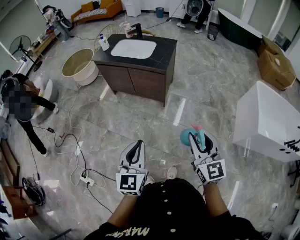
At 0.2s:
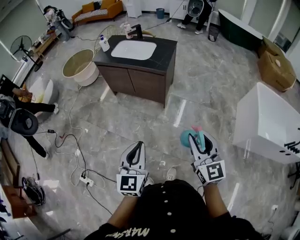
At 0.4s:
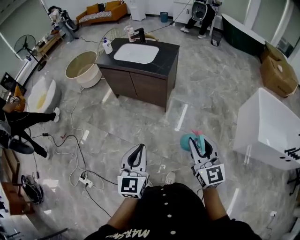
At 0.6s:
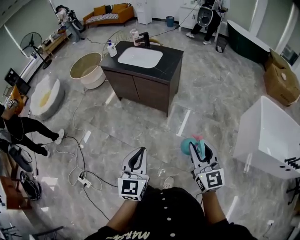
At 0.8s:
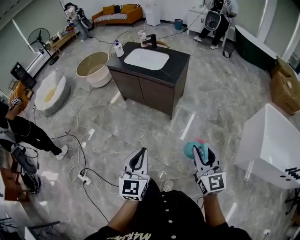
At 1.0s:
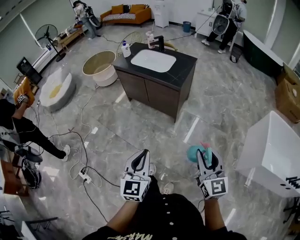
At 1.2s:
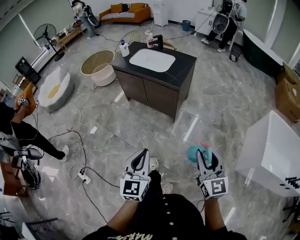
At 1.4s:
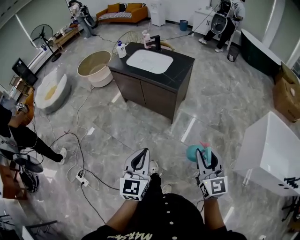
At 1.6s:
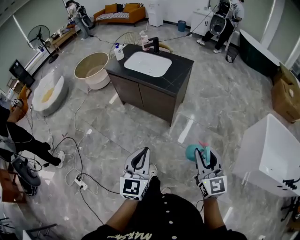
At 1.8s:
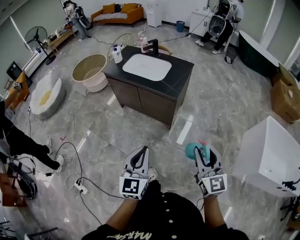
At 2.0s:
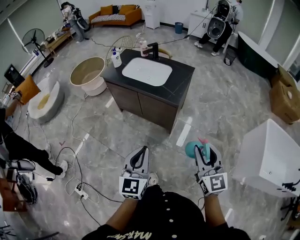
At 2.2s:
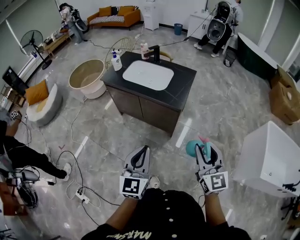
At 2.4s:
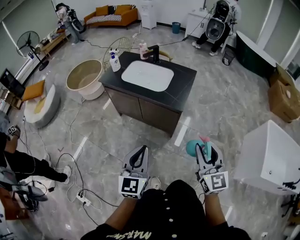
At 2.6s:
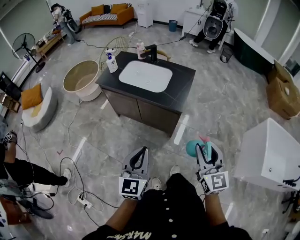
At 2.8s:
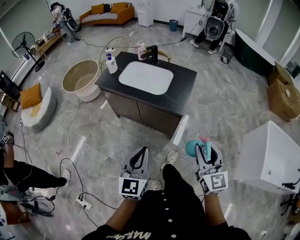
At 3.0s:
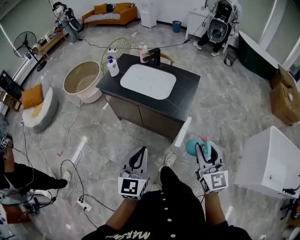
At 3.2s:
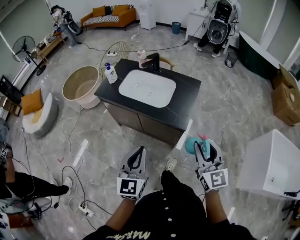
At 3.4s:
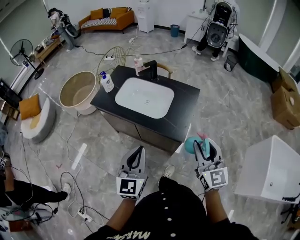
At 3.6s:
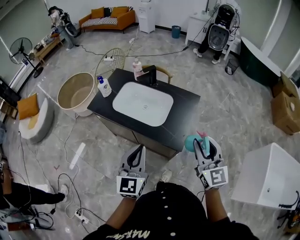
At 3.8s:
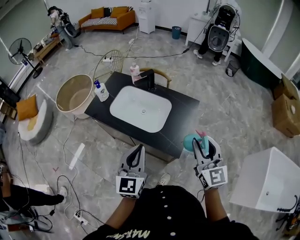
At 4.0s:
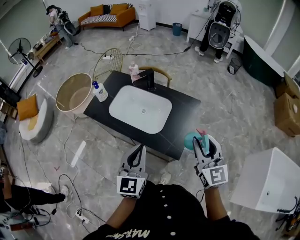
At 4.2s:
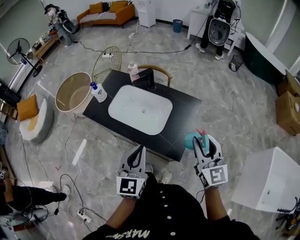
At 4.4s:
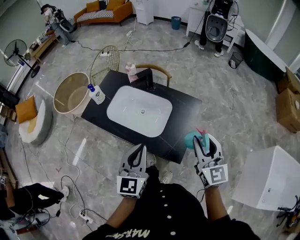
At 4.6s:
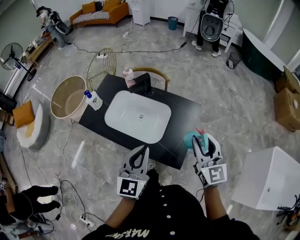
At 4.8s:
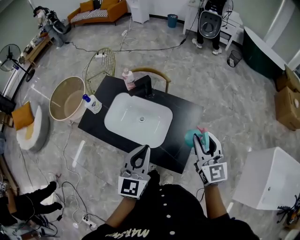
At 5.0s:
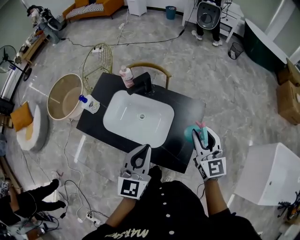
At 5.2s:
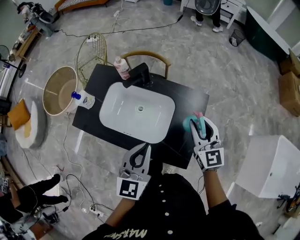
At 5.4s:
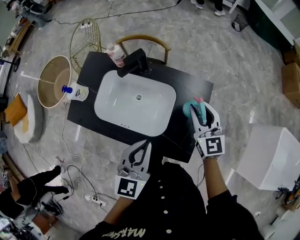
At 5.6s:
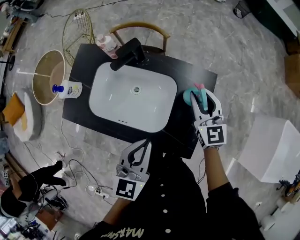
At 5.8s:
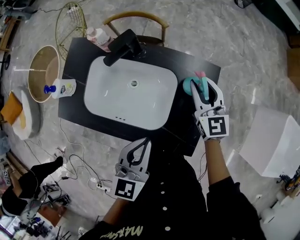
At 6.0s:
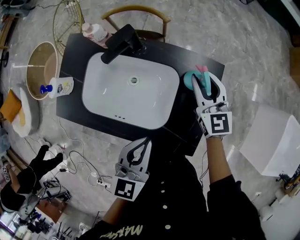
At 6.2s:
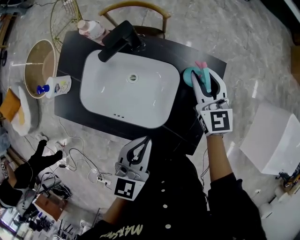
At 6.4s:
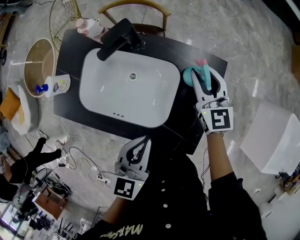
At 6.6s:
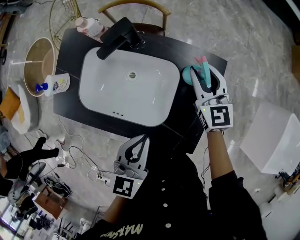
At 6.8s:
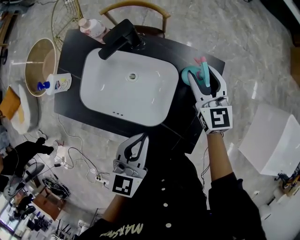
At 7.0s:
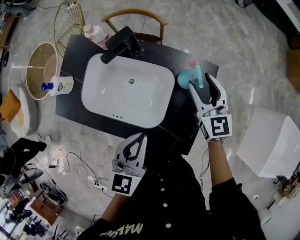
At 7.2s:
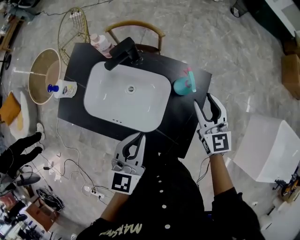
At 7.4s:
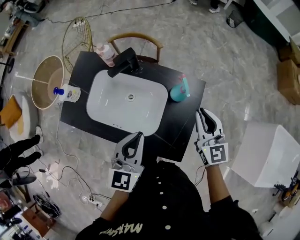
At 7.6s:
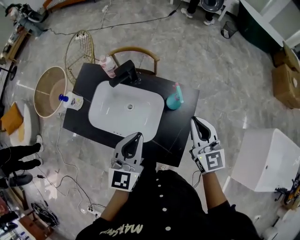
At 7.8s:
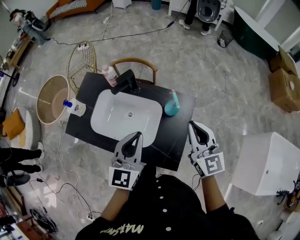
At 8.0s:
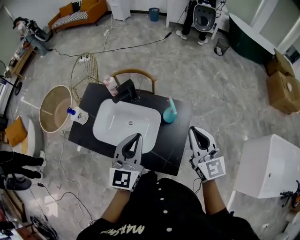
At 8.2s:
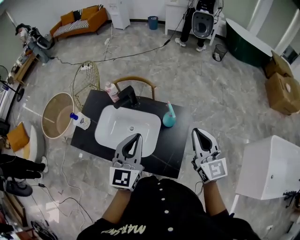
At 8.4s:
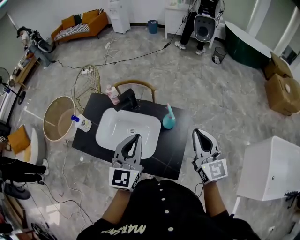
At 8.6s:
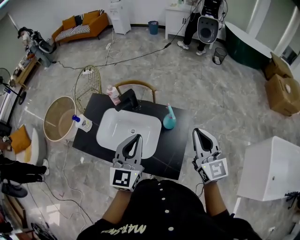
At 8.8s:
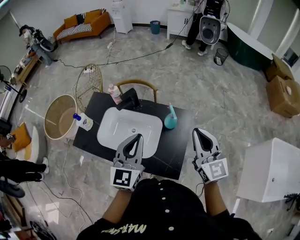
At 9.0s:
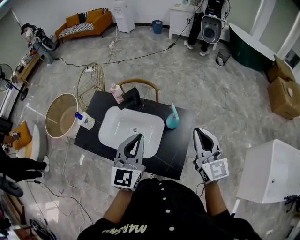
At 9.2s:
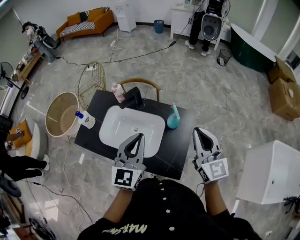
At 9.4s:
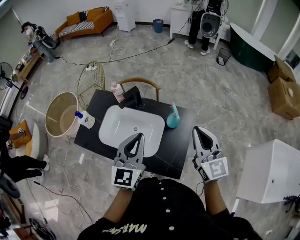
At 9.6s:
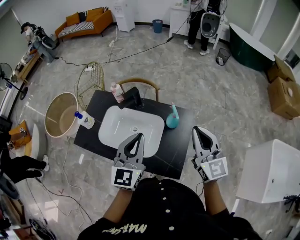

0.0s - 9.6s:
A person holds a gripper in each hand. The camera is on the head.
0.0s - 1.6s: The left gripper goes about 10 cm forward. The right gripper is displaced forward and to the right by some 10 cm.
1.6s - 3.2s: Both grippers travel together forward, roughly 35 cm.
3.2s - 4.8s: Both grippers move forward, about 35 cm.
4.8s - 6.4s: The right gripper goes about 30 cm forward and downward. Meanwhile the left gripper heads downward and forward, covering some 15 cm, and turns by roughly 30 degrees.
6.4s - 8.0s: The right gripper shifts approximately 25 cm upward and backward, and closes its fingers. The left gripper shifts approximately 15 cm upward, and turns by roughly 30 degrees.
8.0s - 9.6s: The grippers stay close to where they were, moving slightly.

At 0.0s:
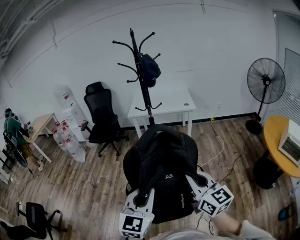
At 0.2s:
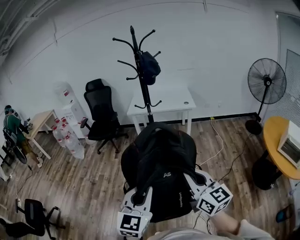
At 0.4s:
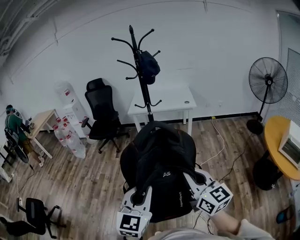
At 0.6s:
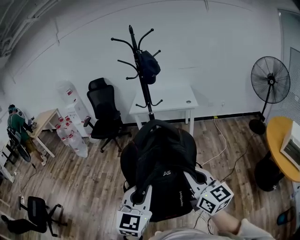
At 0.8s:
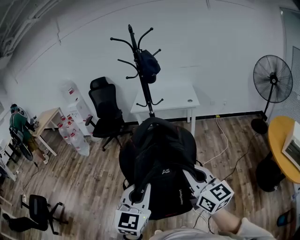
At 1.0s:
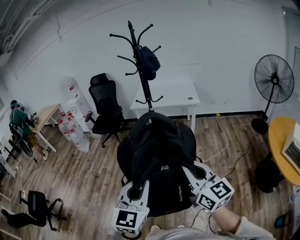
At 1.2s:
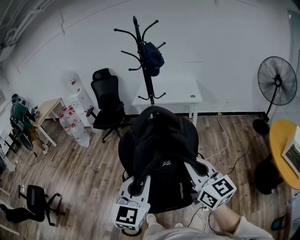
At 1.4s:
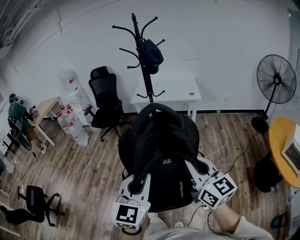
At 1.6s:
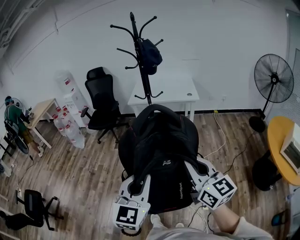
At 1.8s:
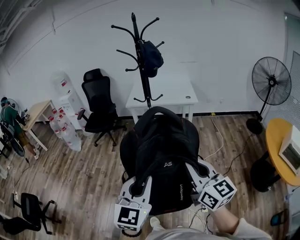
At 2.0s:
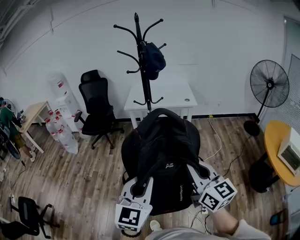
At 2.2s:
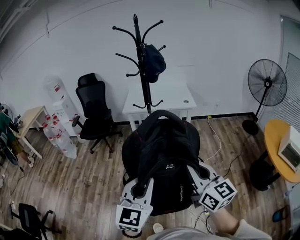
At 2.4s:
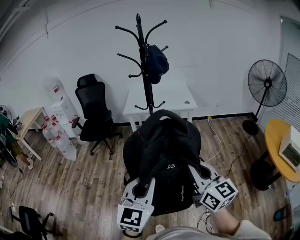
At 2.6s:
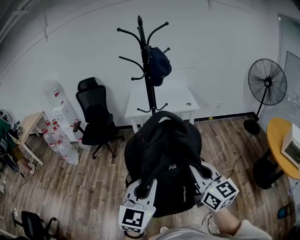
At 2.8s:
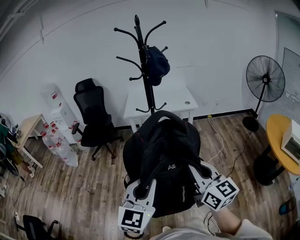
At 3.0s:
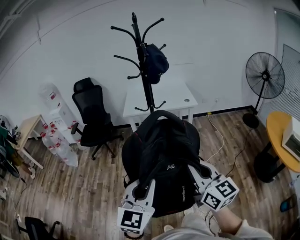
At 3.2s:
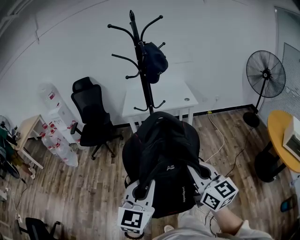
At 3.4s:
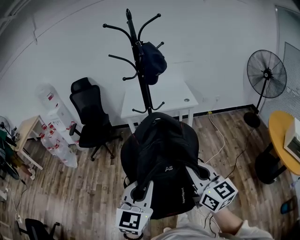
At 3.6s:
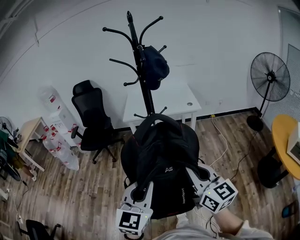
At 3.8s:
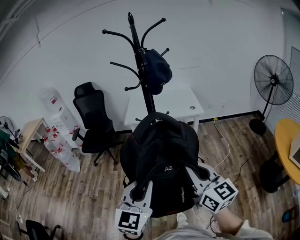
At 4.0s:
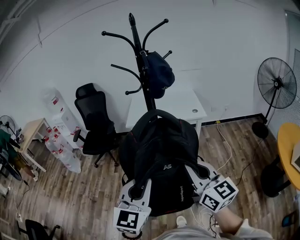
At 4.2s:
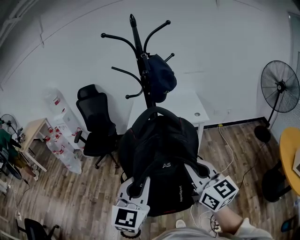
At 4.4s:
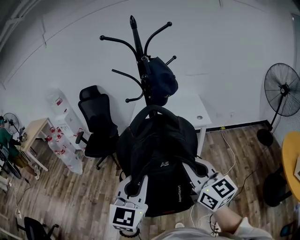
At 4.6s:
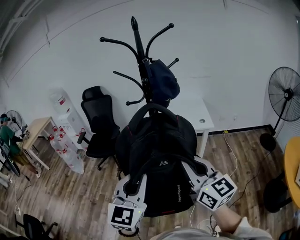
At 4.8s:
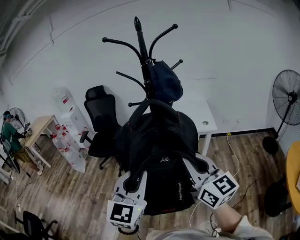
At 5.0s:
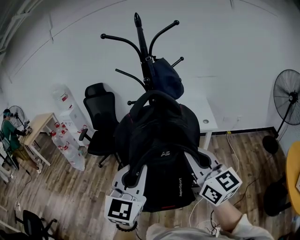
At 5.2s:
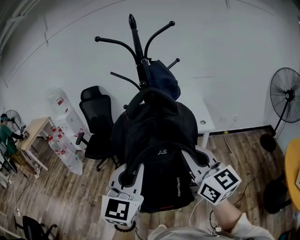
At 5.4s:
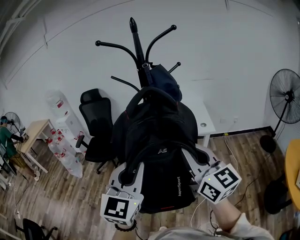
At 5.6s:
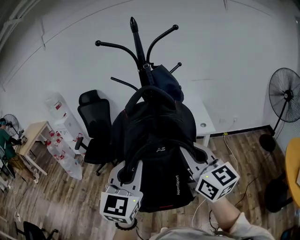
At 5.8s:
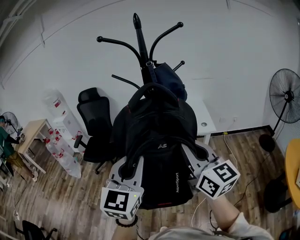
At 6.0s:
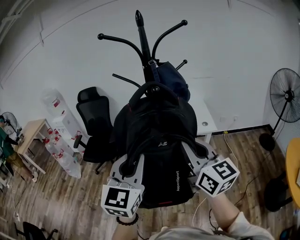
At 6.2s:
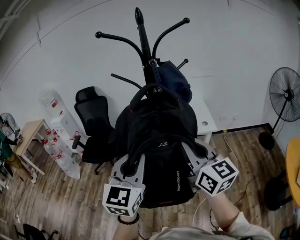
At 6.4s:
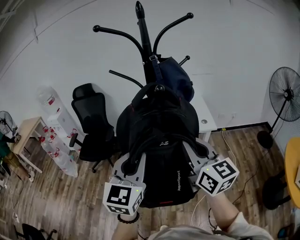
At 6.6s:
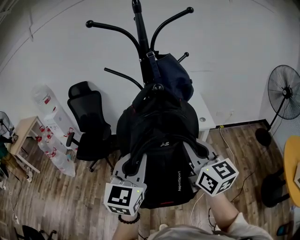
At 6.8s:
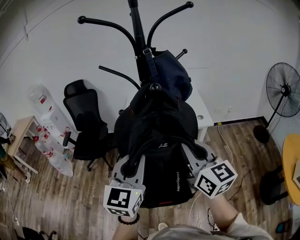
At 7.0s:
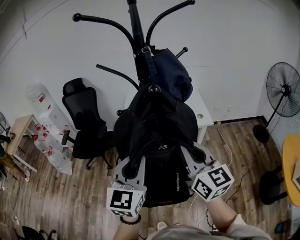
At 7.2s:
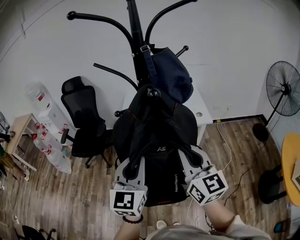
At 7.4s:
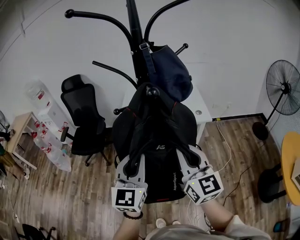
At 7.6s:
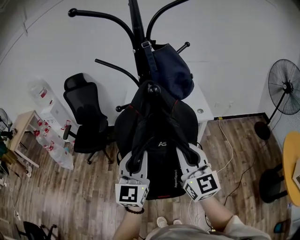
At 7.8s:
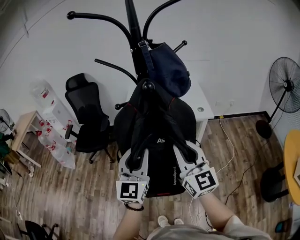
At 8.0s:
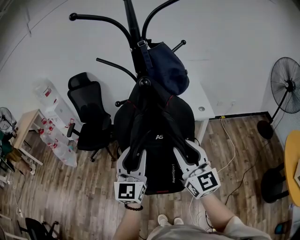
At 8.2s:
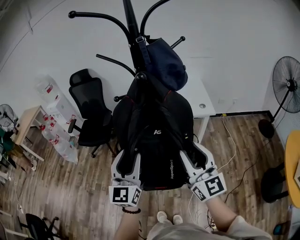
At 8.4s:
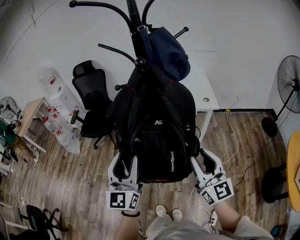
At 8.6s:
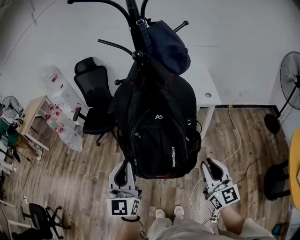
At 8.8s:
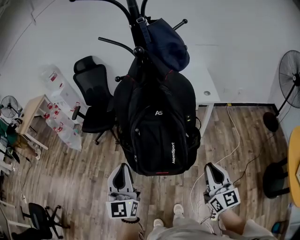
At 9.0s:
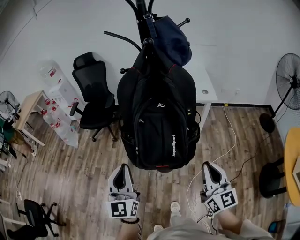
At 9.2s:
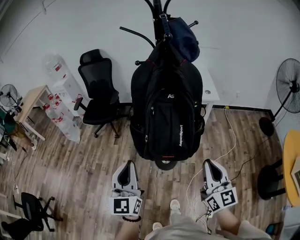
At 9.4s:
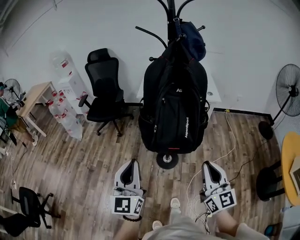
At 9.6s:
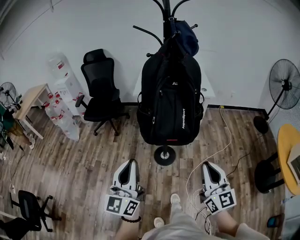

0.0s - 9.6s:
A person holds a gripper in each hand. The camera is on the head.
0.0s - 1.6s: The right gripper moves approximately 5 cm. Meanwhile the left gripper moves about 5 cm.
1.6s - 3.2s: The two grippers go about 20 cm forward and to the left.
3.2s - 4.8s: Both grippers move forward, approximately 25 cm.
4.8s - 6.4s: The two grippers go some 15 cm forward.
6.4s - 8.0s: The grippers both shift downward by about 10 cm. The right gripper opens. The left gripper opens.
8.0s - 9.6s: The right gripper goes approximately 35 cm backward, and closes its fingers. Meanwhile the left gripper shifts approximately 35 cm backward and to the left, swivels some 20 degrees, and closes its fingers.

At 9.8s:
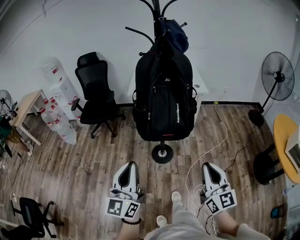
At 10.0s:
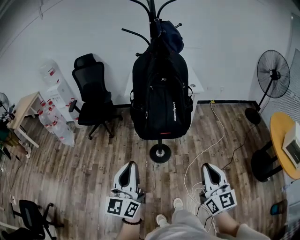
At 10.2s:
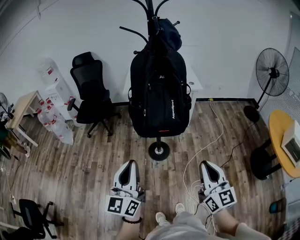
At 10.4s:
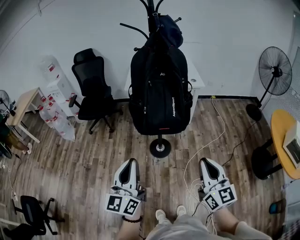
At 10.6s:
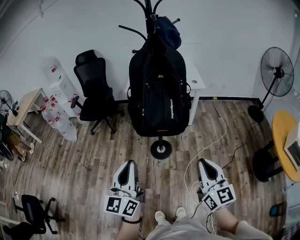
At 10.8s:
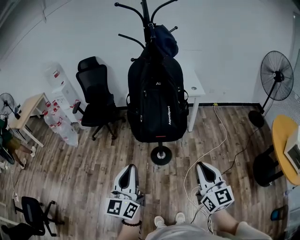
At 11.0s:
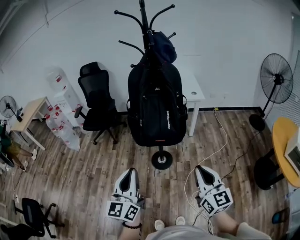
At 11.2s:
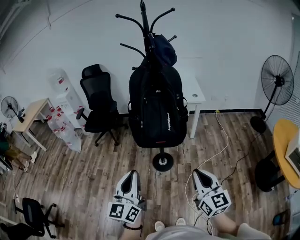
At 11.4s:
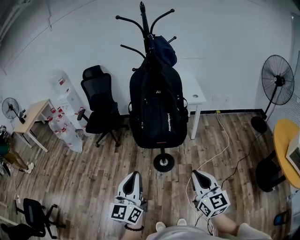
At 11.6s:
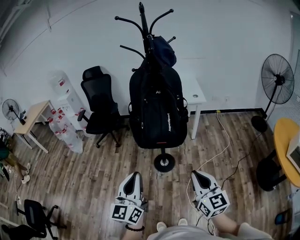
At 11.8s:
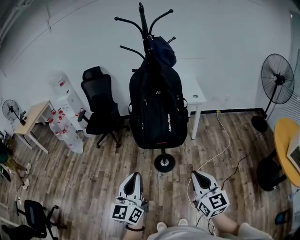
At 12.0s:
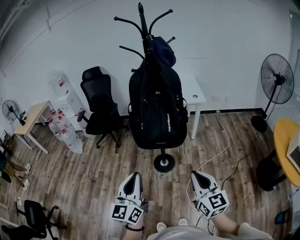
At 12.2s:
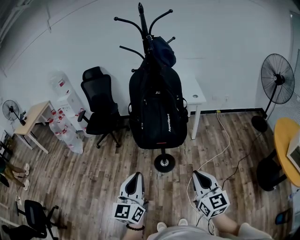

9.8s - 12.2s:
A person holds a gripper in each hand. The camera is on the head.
9.8s - 11.0s: The left gripper is displaced to the right by roughly 5 cm.
11.0s - 12.2s: There are only small adjustments of the grippers.

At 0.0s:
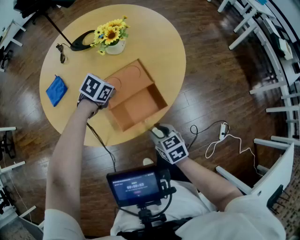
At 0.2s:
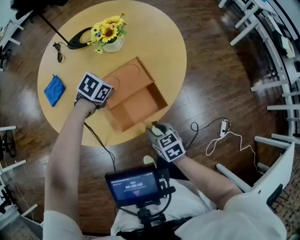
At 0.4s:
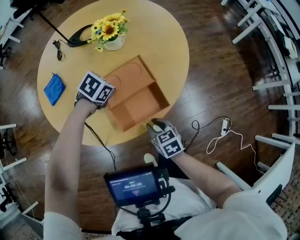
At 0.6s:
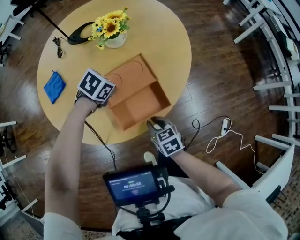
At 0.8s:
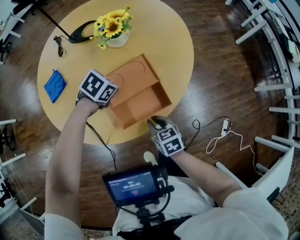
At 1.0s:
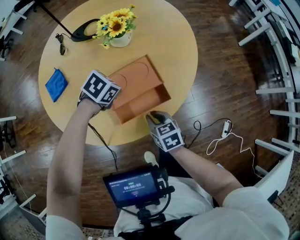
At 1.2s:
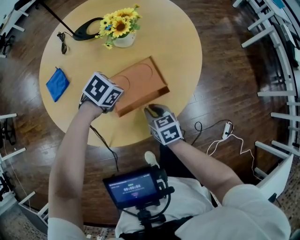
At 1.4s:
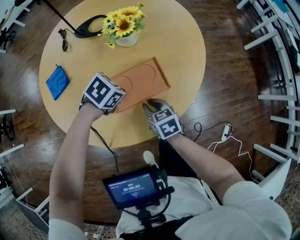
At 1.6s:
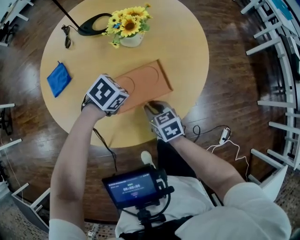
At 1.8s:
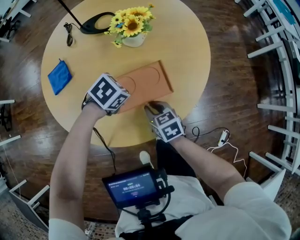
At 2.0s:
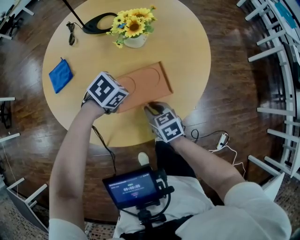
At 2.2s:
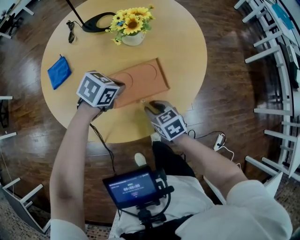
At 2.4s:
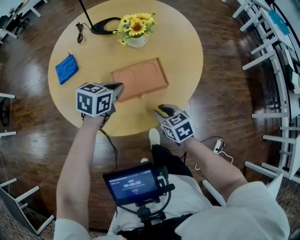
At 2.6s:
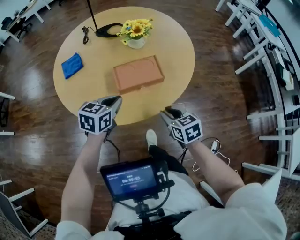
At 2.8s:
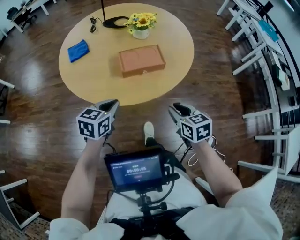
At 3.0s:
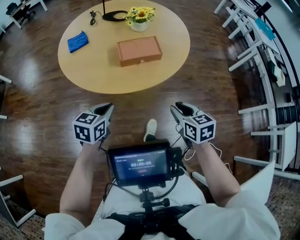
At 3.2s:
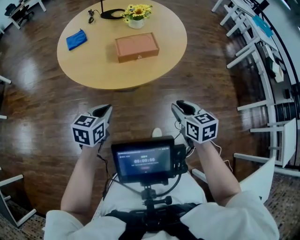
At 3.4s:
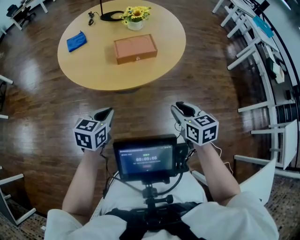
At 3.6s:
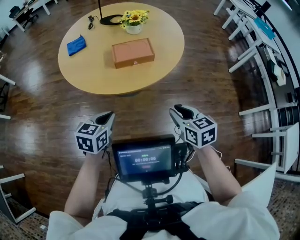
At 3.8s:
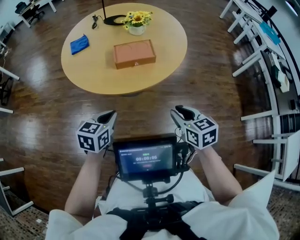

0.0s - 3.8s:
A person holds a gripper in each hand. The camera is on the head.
0.0s - 1.2s: The right gripper moves forward and to the left, about 15 cm.
1.2s - 2.6s: The left gripper changes place by some 15 cm, and tilts its fingers approximately 30 degrees upward, while the right gripper moves about 15 cm.
2.6s - 3.8s: The left gripper shifts some 25 cm backward, while the right gripper moves backward, upward and to the right, some 20 cm.
